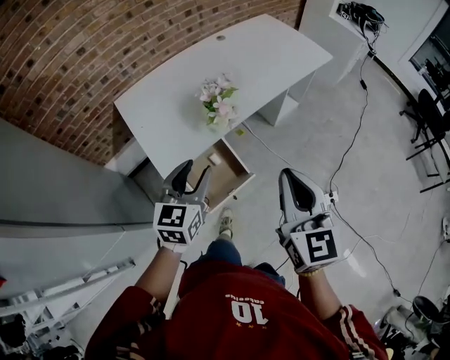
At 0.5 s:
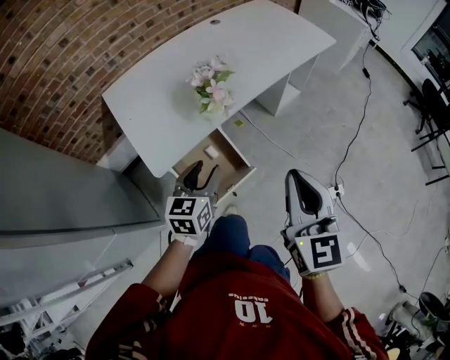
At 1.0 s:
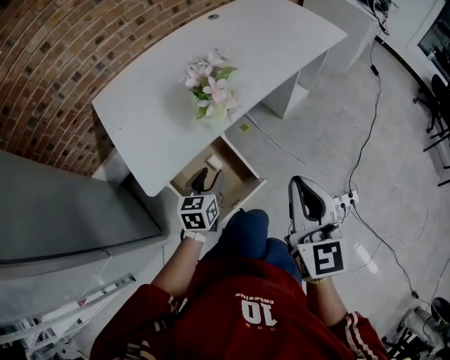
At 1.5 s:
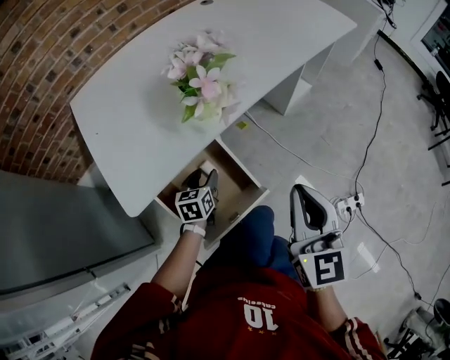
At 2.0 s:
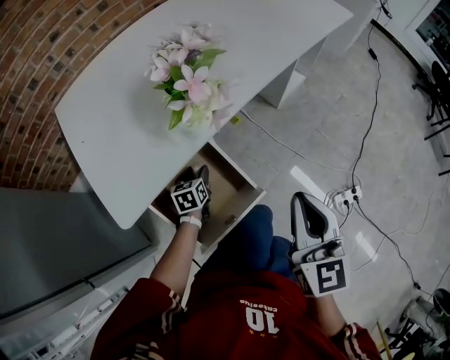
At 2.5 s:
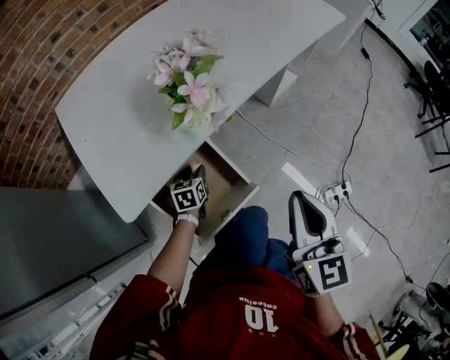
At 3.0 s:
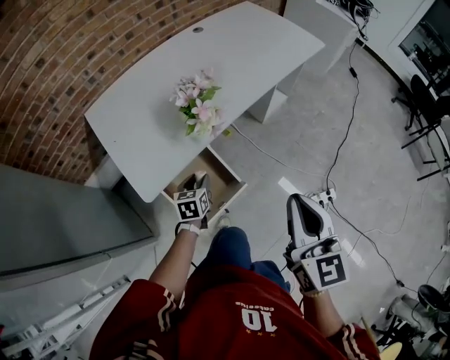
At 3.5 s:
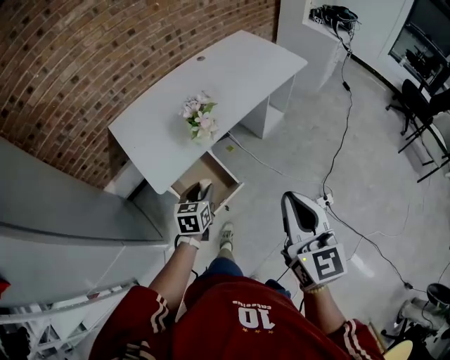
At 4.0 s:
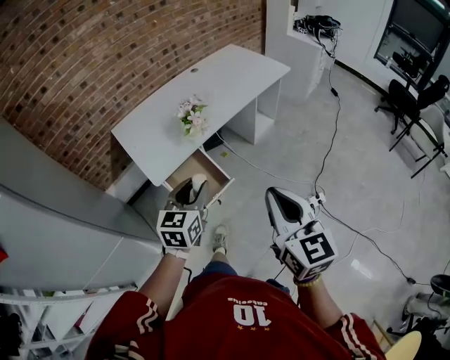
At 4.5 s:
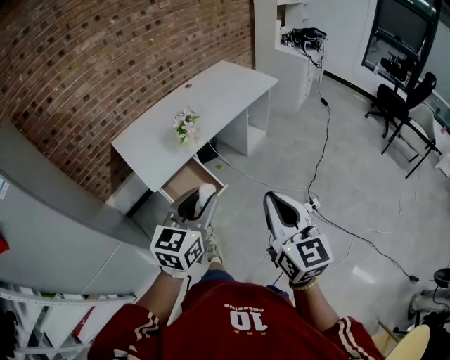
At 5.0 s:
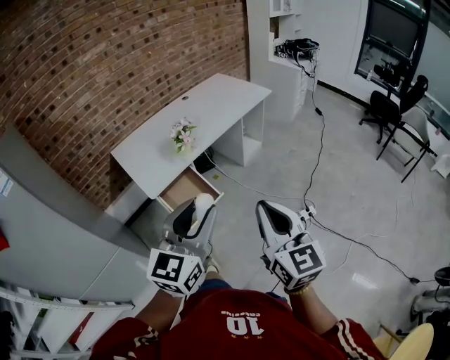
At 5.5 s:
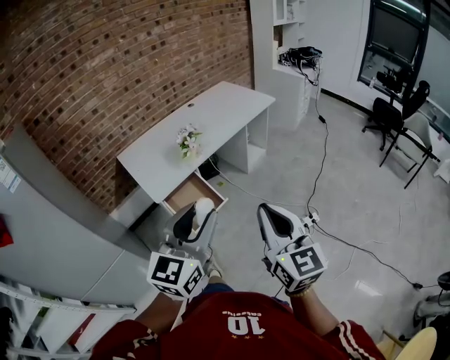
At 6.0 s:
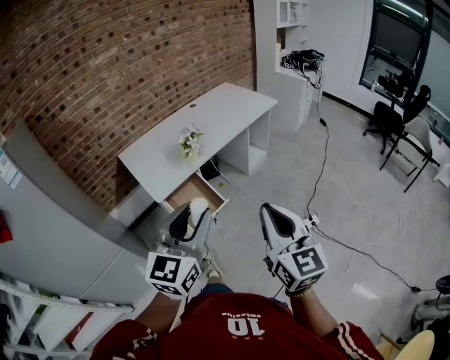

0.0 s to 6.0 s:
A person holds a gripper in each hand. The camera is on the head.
0.0 to 2.0 s: The left gripper heads downward, covering some 50 cm, and rotates about 30 degrees; the right gripper moves downward, about 30 cm.
2.0 to 4.0 s: Both grippers move upward and backward, approximately 50 cm. The left gripper rotates about 30 degrees.
4.0 to 6.0 s: The right gripper moves backward, approximately 10 cm; the left gripper is displaced backward and upward by roughly 25 cm, and turns by roughly 20 degrees.

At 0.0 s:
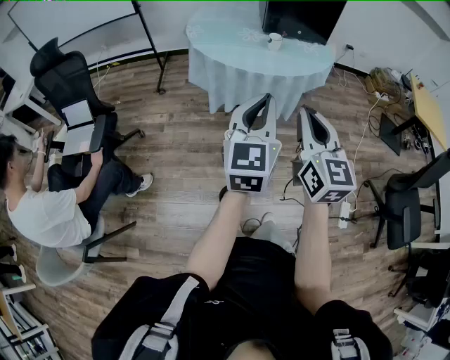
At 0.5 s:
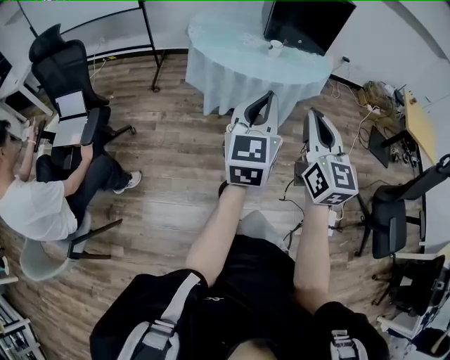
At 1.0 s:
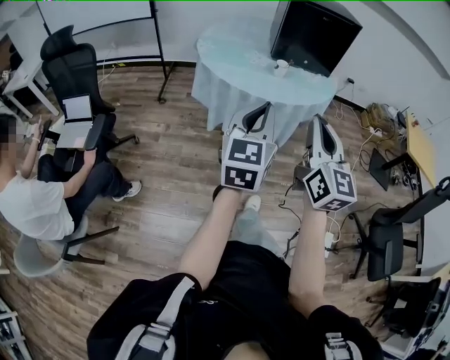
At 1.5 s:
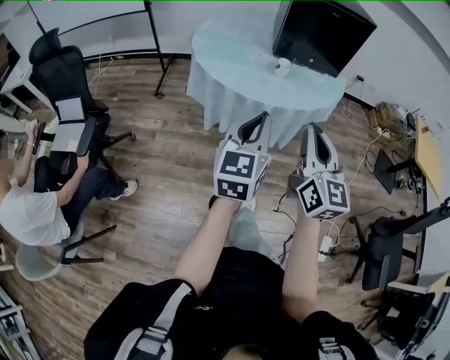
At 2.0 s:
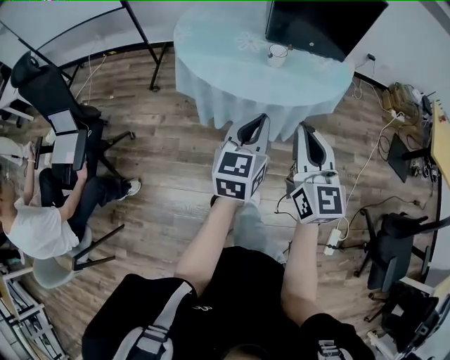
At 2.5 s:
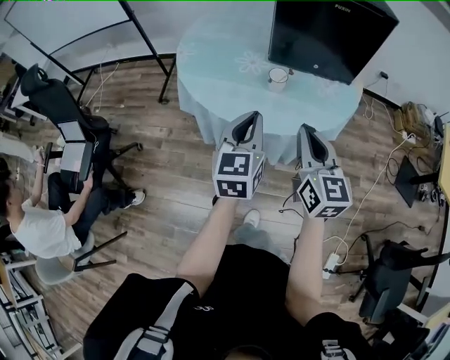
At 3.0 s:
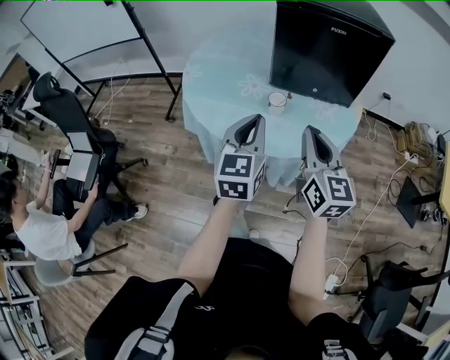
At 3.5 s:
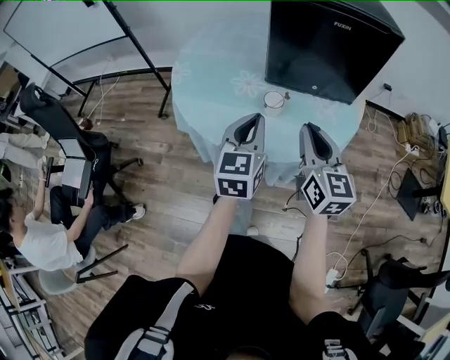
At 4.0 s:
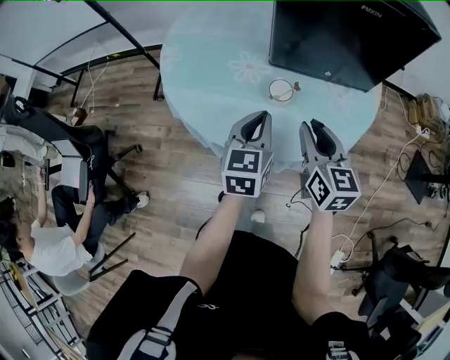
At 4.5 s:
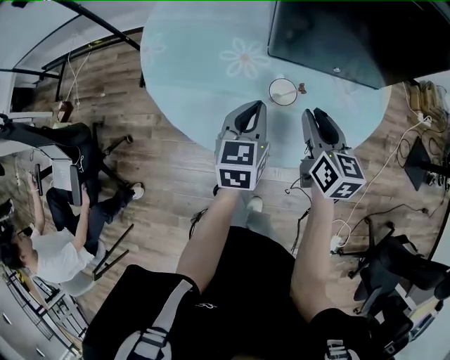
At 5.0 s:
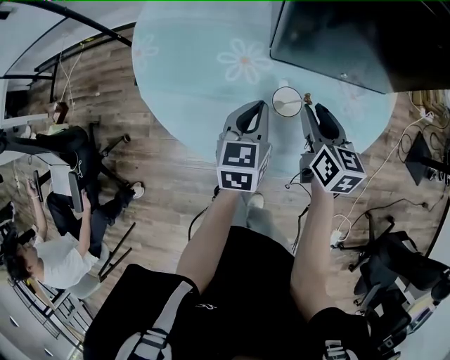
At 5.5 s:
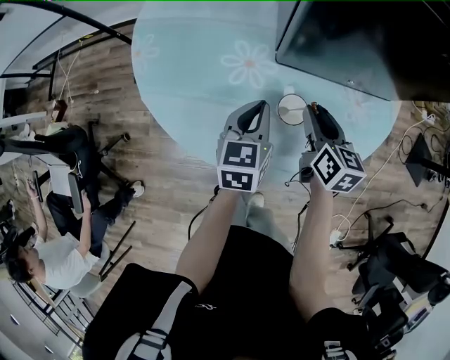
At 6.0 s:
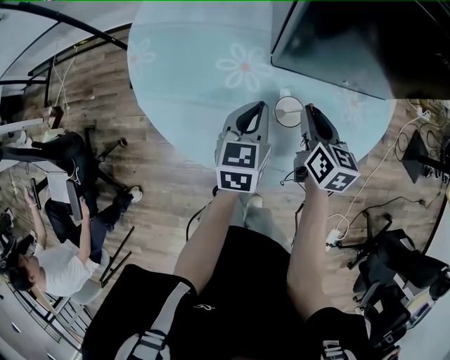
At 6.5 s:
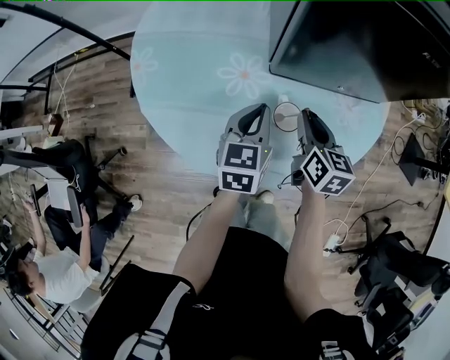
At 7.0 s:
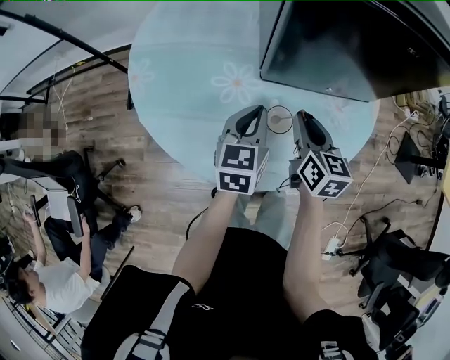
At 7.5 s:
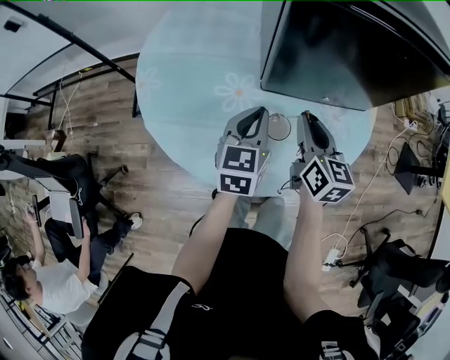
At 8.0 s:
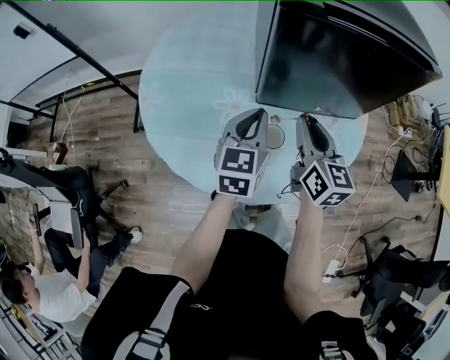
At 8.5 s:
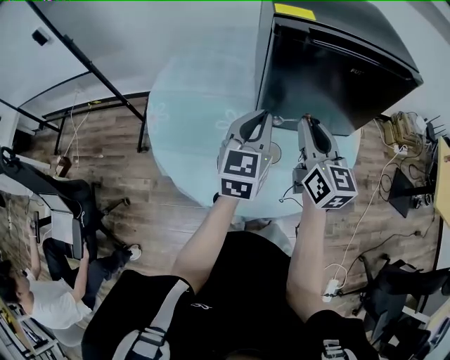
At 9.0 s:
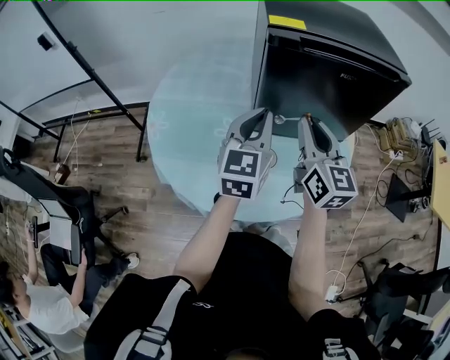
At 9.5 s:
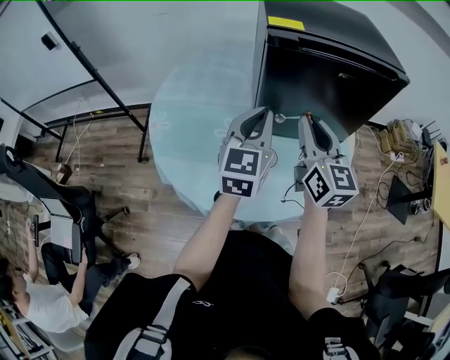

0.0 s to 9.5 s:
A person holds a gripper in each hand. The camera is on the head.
0.0 to 2.0 s: The left gripper travels forward and downward by approximately 25 cm. Meanwhile the right gripper heads forward, covering approximately 20 cm.
2.0 to 4.0 s: Both grippers move forward, about 25 cm. The right gripper rotates roughly 20 degrees, and opens up.
4.0 to 5.5 s: Both grippers travel together forward and downward, about 15 cm.
5.5 to 7.5 s: The two grippers go approximately 10 cm upward.
7.5 to 9.5 s: The two grippers go roughly 15 cm upward. The left gripper rotates approximately 20 degrees. Meanwhile the right gripper swivels some 20 degrees.

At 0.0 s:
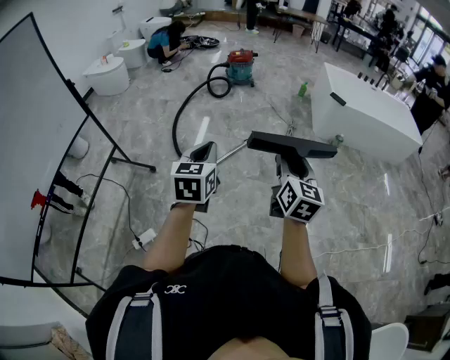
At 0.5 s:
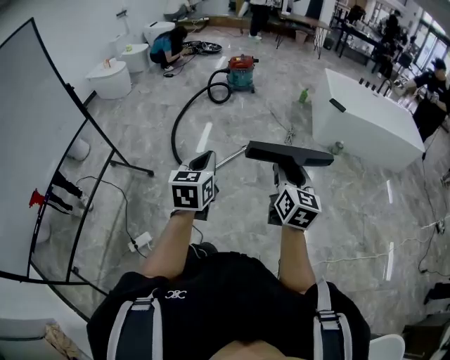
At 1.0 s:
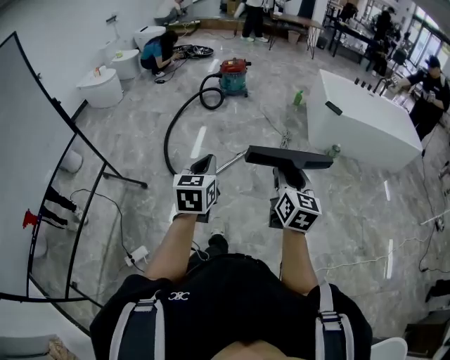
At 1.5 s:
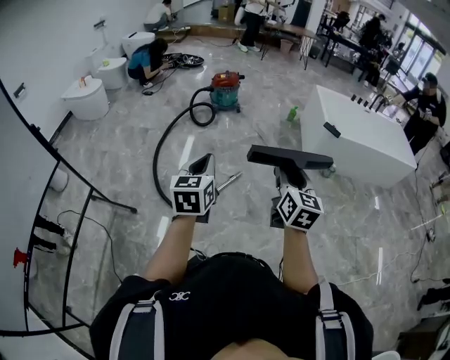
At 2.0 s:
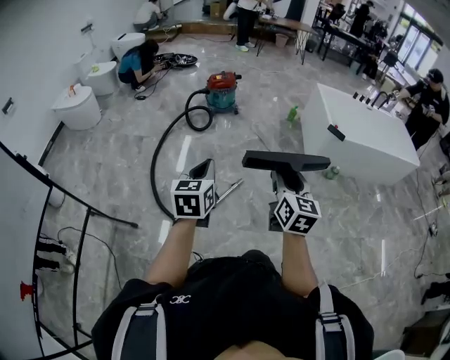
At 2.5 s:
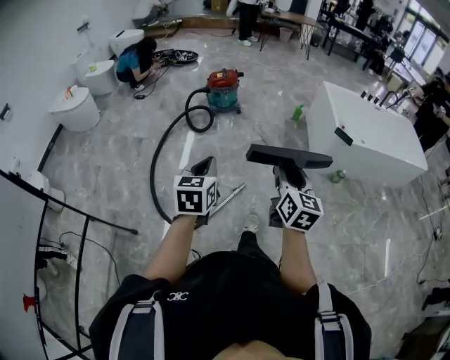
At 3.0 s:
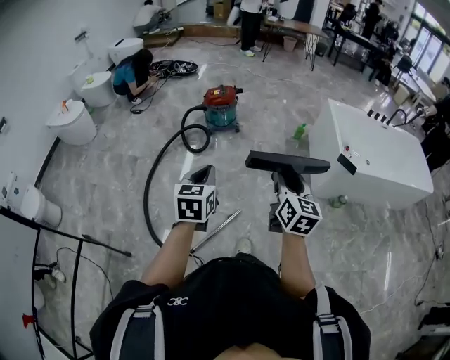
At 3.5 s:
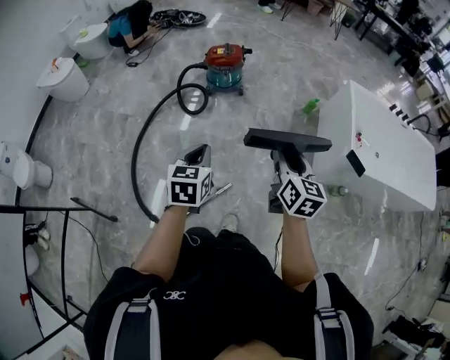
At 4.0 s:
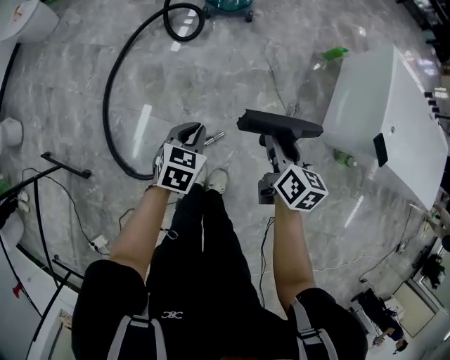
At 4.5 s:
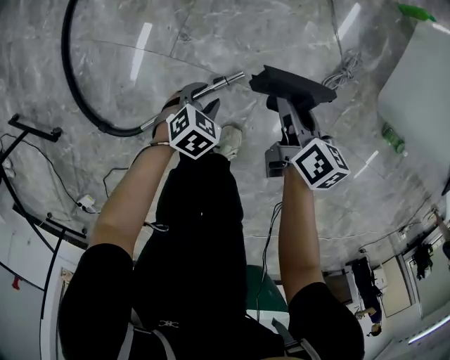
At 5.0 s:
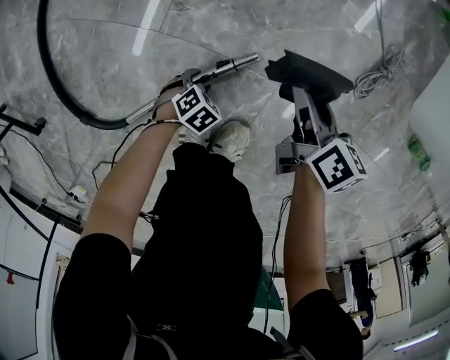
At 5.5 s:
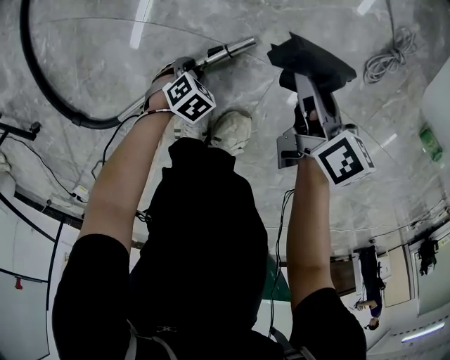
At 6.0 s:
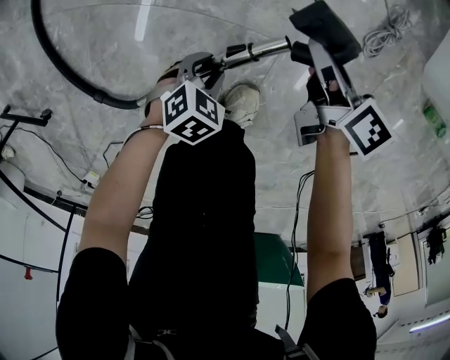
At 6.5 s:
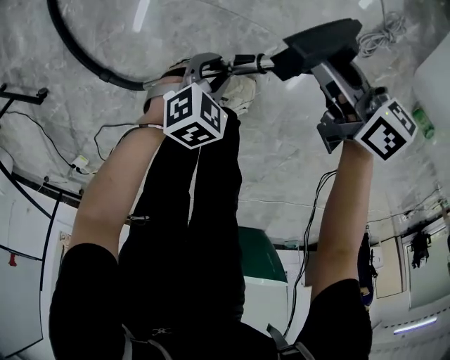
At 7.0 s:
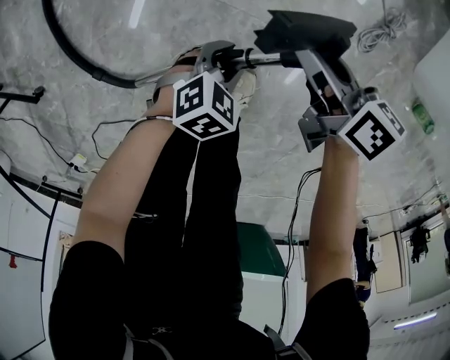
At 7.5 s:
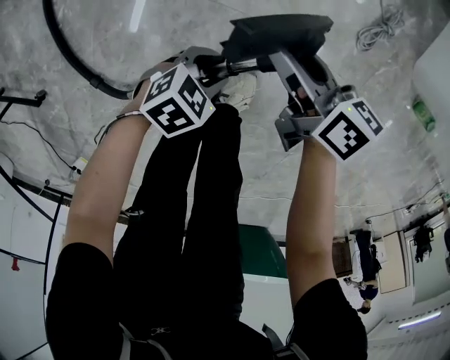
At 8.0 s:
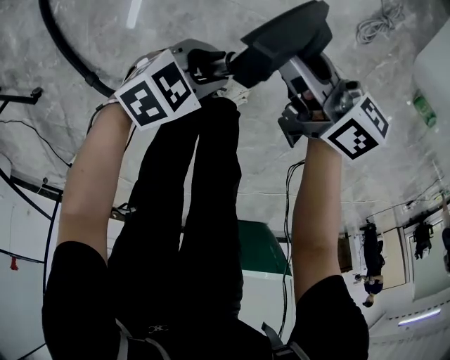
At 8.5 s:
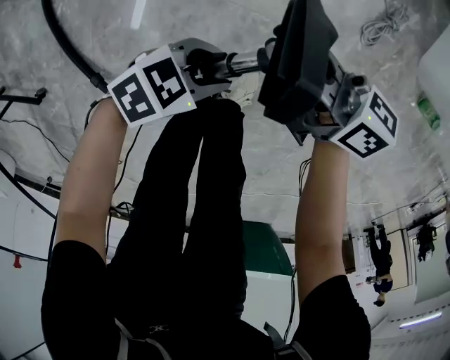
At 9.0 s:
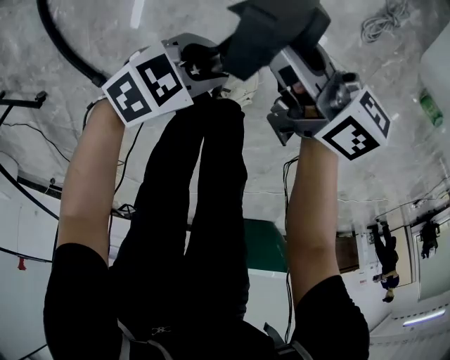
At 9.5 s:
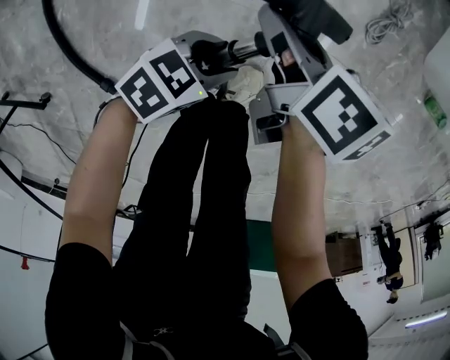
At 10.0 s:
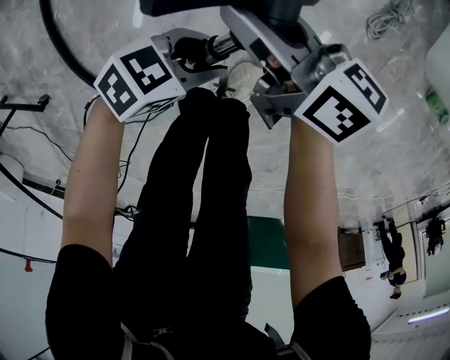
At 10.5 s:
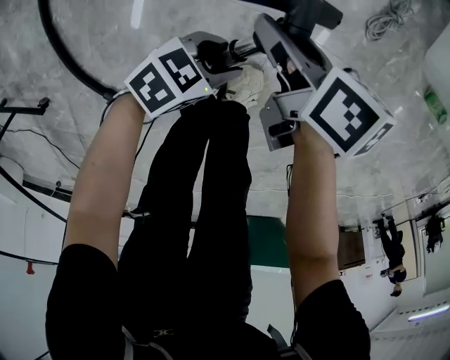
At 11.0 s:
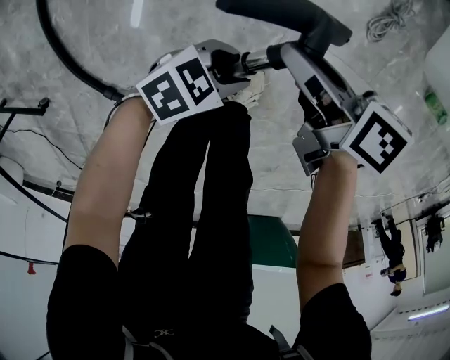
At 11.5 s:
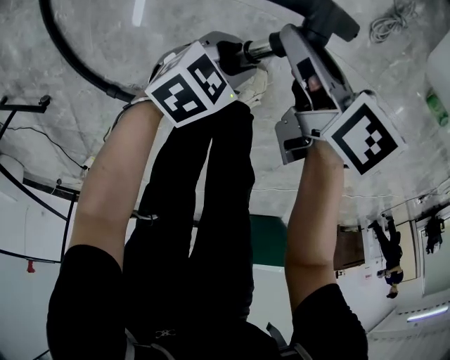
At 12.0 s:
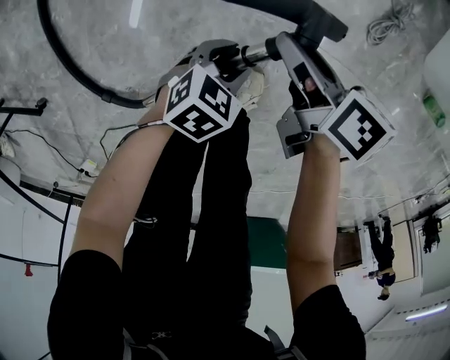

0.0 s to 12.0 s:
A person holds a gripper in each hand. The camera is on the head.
0.0 to 2.0 s: Both grippers travel together forward, about 40 cm.
2.0 to 4.0 s: The pair of grippers is taken forward, about 50 cm. The grippers both shift downward by approximately 35 cm. The left gripper rotates roughly 30 degrees, while the right gripper turns by roughly 40 degrees.
4.0 to 6.0 s: The two grippers go approximately 50 cm downward. The right gripper changes its angle by some 20 degrees; the left gripper rotates some 30 degrees, and opens.
6.0 to 8.0 s: The right gripper shifts by about 15 cm, and turns by some 30 degrees, while the left gripper travels upward by approximately 10 cm, and rotates some 30 degrees.
8.0 to 10.0 s: The right gripper changes place by approximately 5 cm.
10.0 to 12.0 s: The left gripper is displaced downward by approximately 5 cm, and changes its angle by about 20 degrees. The right gripper ends up approximately 10 cm from where it was, and changes its angle by some 30 degrees.
